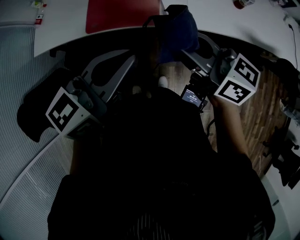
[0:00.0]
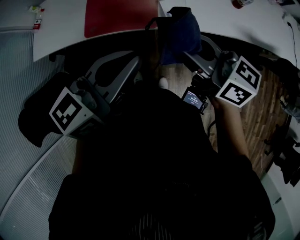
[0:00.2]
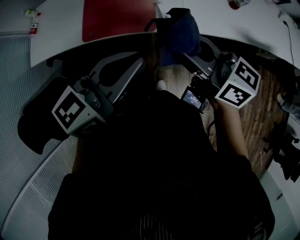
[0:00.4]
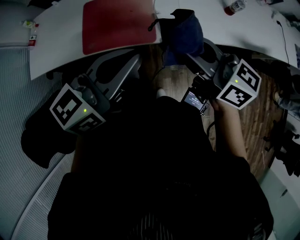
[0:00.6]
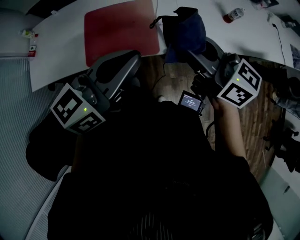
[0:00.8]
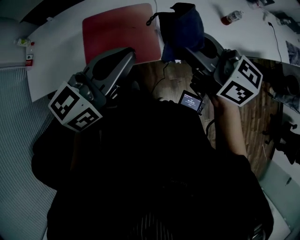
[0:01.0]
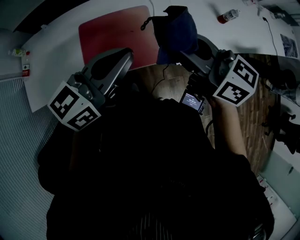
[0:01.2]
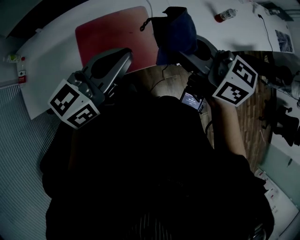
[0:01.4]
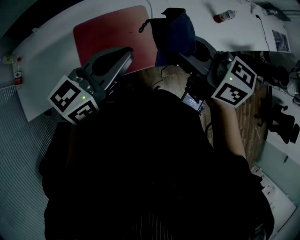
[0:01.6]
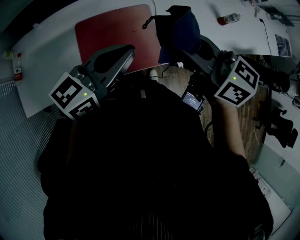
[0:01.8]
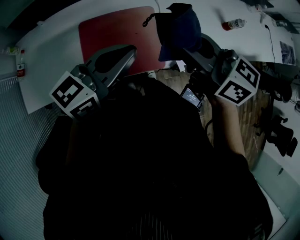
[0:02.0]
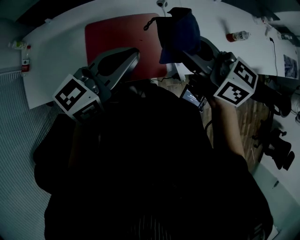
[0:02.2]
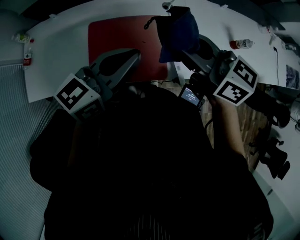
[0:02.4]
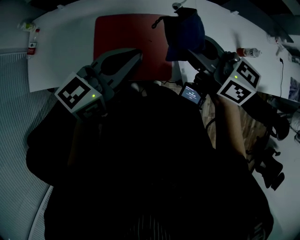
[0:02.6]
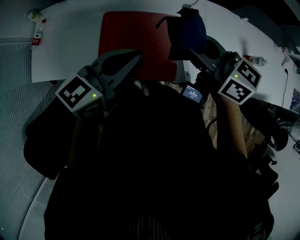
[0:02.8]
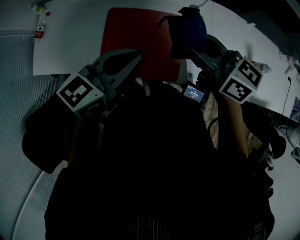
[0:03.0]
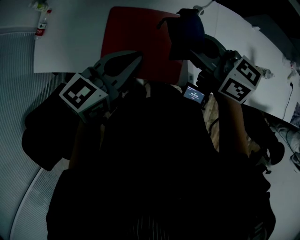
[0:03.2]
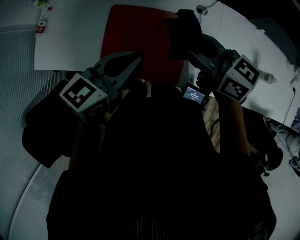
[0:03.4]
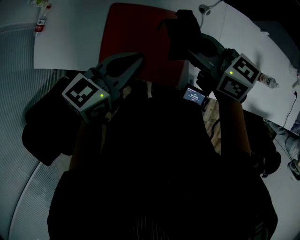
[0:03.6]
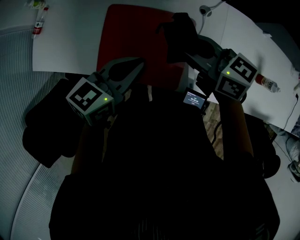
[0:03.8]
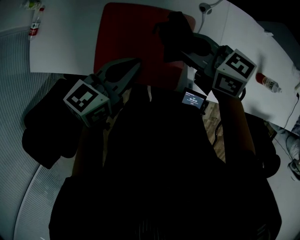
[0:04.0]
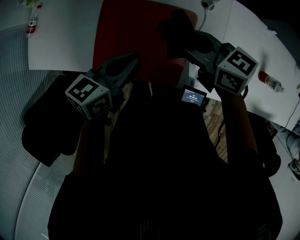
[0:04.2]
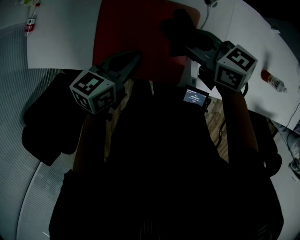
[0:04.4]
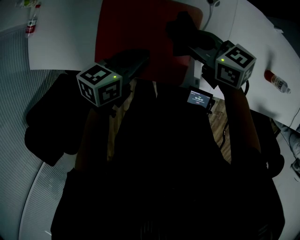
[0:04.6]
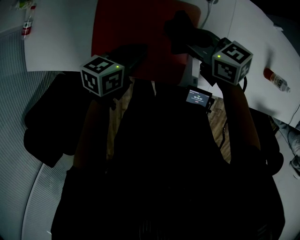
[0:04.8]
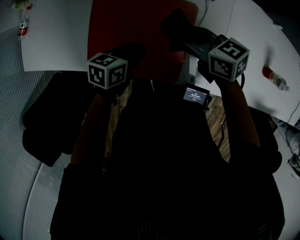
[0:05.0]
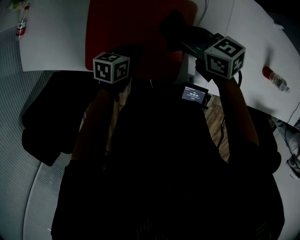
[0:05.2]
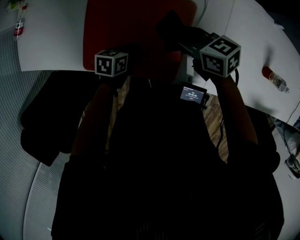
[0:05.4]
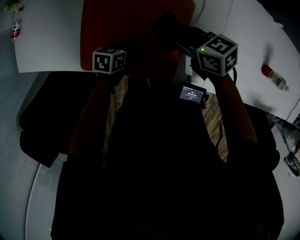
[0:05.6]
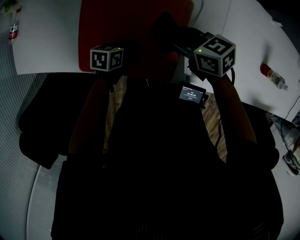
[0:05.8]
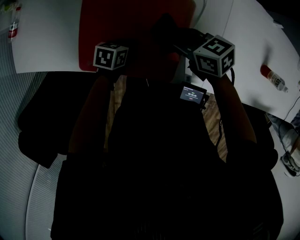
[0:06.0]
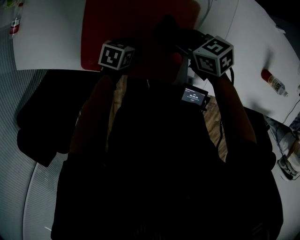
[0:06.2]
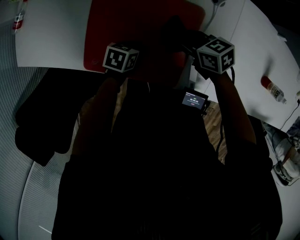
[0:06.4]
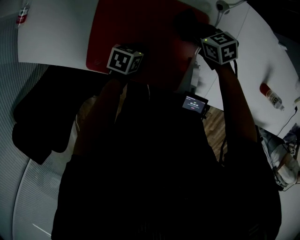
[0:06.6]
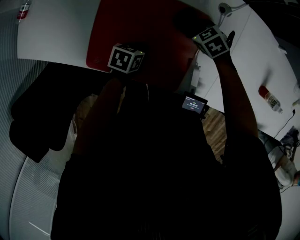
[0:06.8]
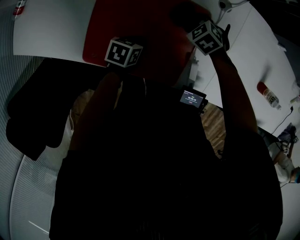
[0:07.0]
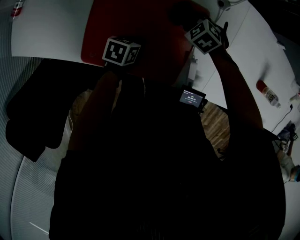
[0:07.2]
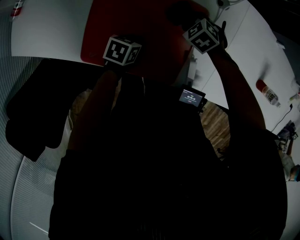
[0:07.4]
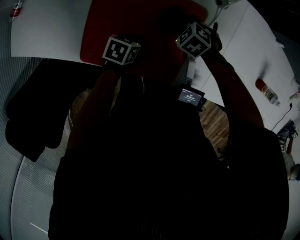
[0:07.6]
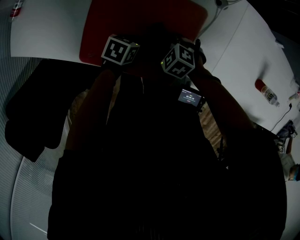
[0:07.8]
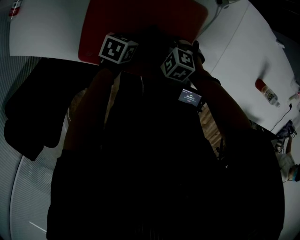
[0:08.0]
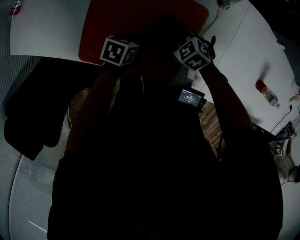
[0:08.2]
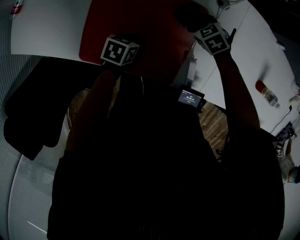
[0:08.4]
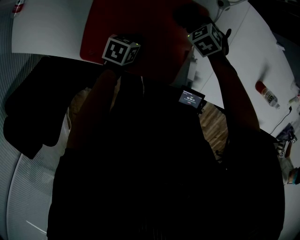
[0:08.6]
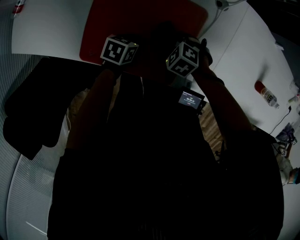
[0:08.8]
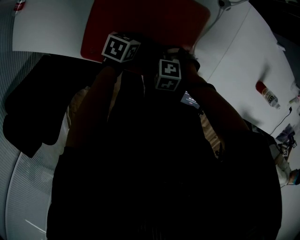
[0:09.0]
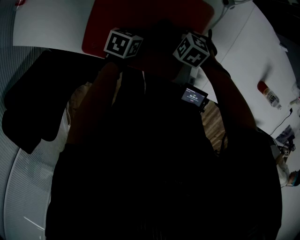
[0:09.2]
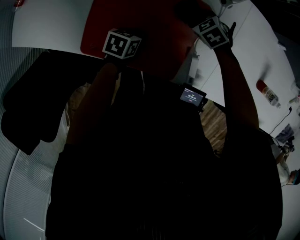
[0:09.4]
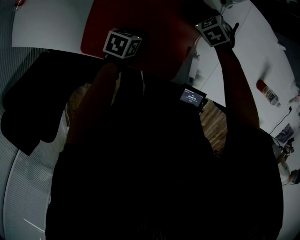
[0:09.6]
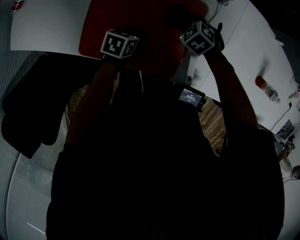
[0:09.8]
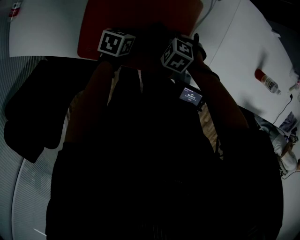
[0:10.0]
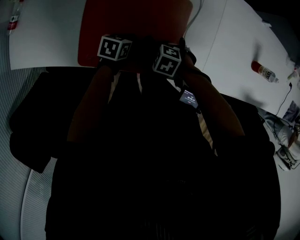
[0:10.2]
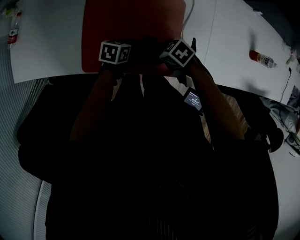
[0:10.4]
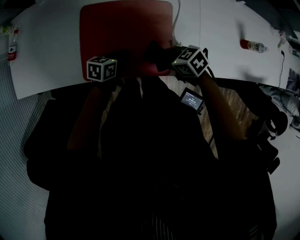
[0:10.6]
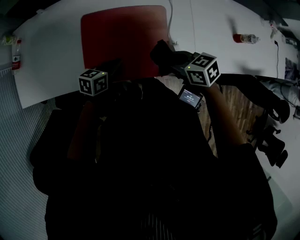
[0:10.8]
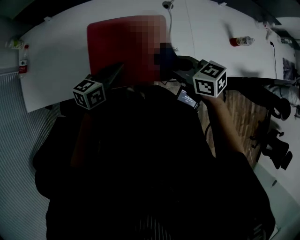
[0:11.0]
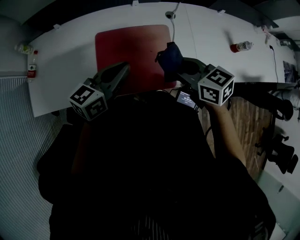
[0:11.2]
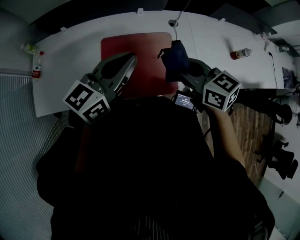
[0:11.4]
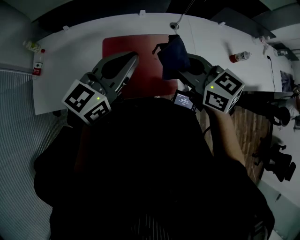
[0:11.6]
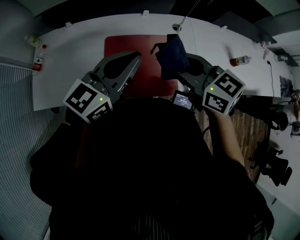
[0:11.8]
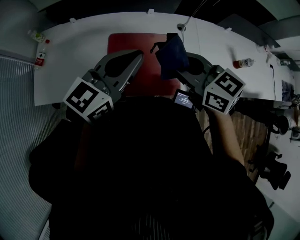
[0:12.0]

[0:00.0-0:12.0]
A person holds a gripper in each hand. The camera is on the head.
0:00.0 to 0:01.6: The right gripper shifts about 20 cm to the left and forward. The left gripper is displaced forward and to the left by roughly 25 cm.
0:01.6 to 0:03.0: The left gripper is displaced forward by approximately 5 cm, and swivels some 20 degrees. Meanwhile the right gripper shifts some 10 cm forward, and rotates some 20 degrees.
0:03.0 to 0:04.4: The two grippers go approximately 15 cm downward. The left gripper changes its angle by about 20 degrees.
0:04.4 to 0:06.0: The right gripper moves downward, about 10 cm. The left gripper shifts some 25 cm downward, and turns by roughly 30 degrees.
0:06.0 to 0:07.6: The right gripper heads downward, covering approximately 10 cm, and tips its fingers downward by some 40 degrees.
0:07.6 to 0:09.0: The right gripper changes place by about 20 cm, and swivels roughly 20 degrees.
0:09.0 to 0:10.4: The right gripper rolls clockwise, seen from behind, by about 50 degrees.
0:10.4 to 0:12.0: The two grippers go some 40 cm upward. The left gripper angles its fingers upward, by about 50 degrees. Meanwhile the right gripper angles its fingers upward, by approximately 40 degrees.

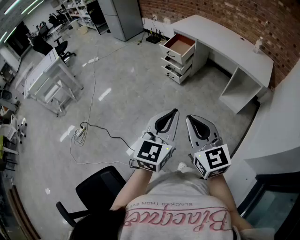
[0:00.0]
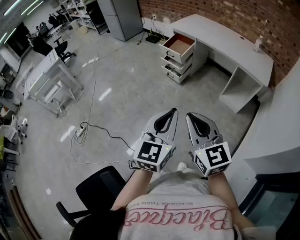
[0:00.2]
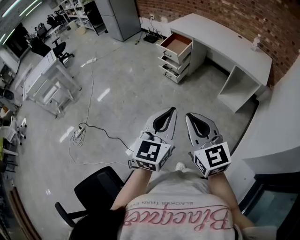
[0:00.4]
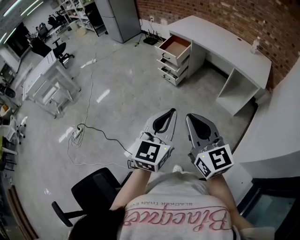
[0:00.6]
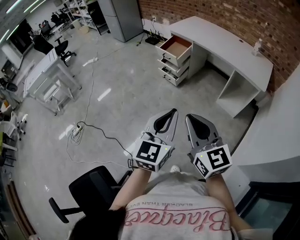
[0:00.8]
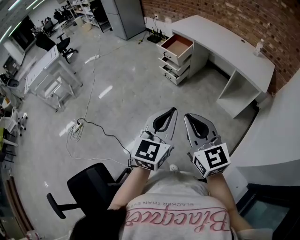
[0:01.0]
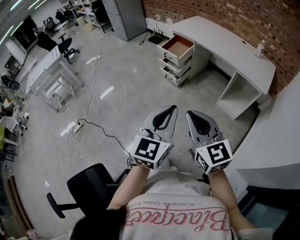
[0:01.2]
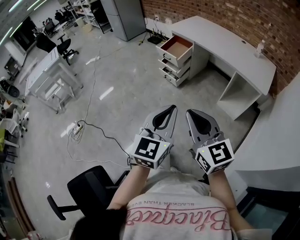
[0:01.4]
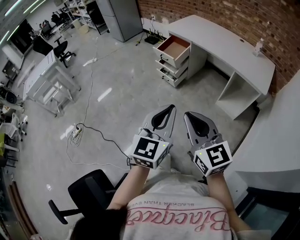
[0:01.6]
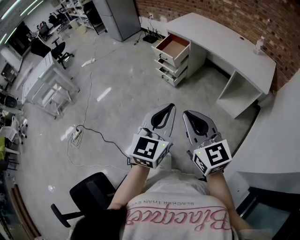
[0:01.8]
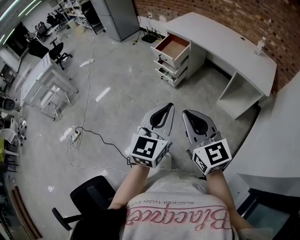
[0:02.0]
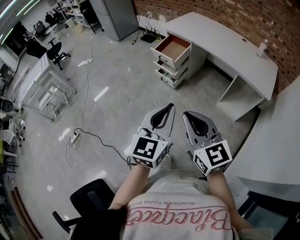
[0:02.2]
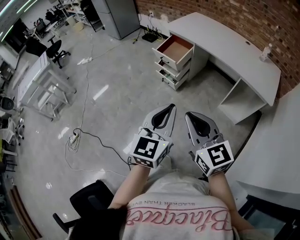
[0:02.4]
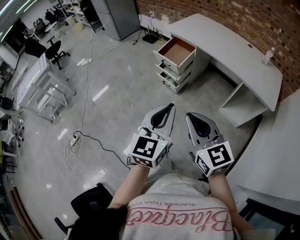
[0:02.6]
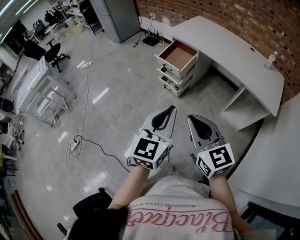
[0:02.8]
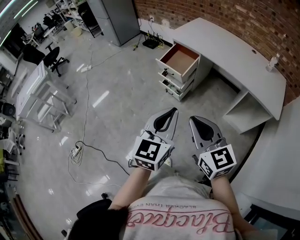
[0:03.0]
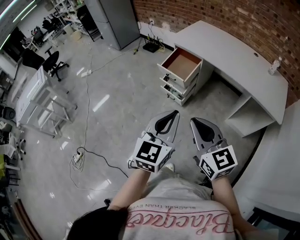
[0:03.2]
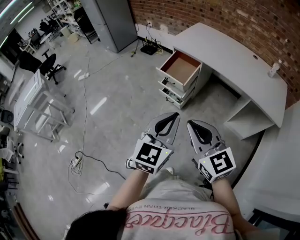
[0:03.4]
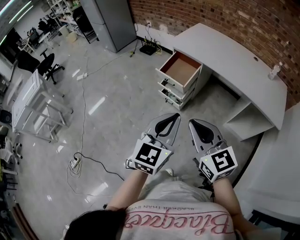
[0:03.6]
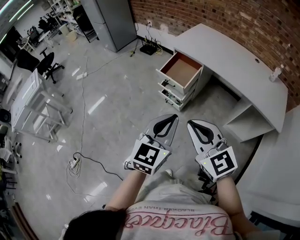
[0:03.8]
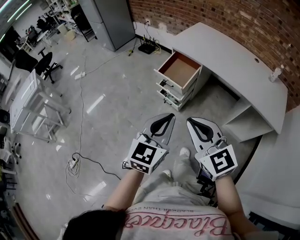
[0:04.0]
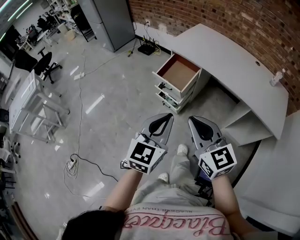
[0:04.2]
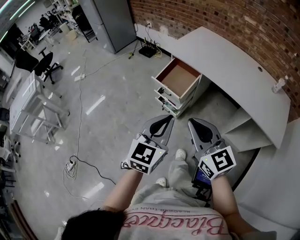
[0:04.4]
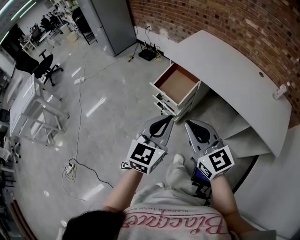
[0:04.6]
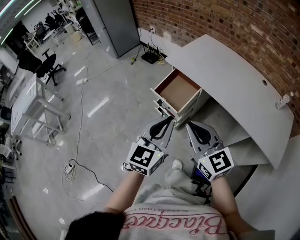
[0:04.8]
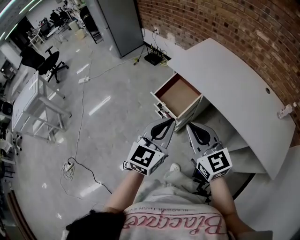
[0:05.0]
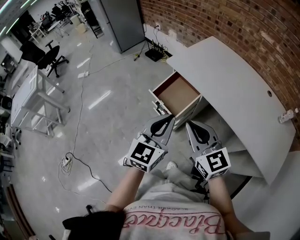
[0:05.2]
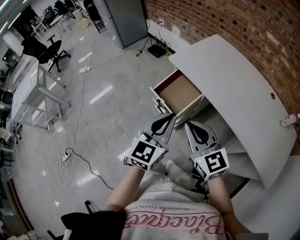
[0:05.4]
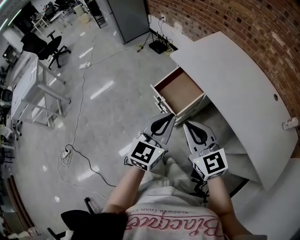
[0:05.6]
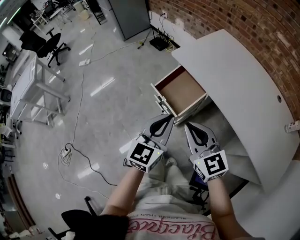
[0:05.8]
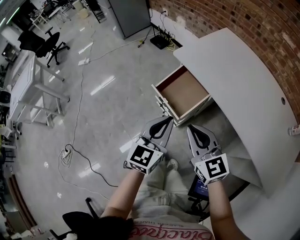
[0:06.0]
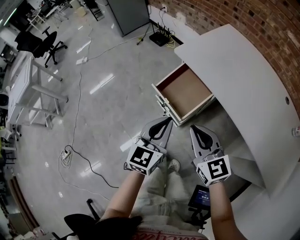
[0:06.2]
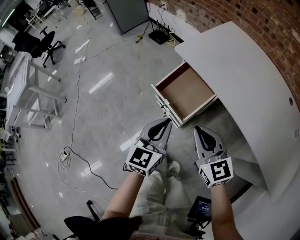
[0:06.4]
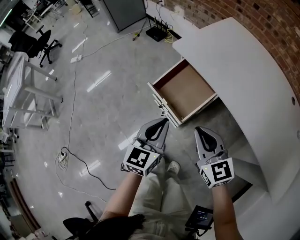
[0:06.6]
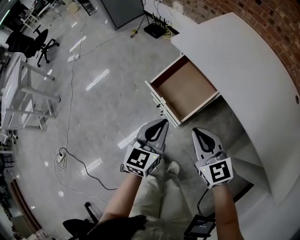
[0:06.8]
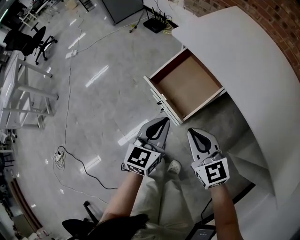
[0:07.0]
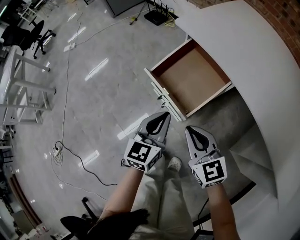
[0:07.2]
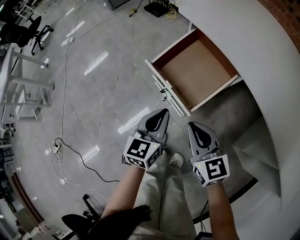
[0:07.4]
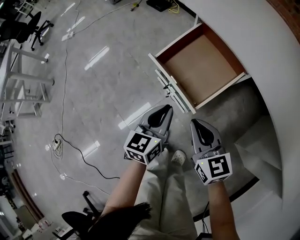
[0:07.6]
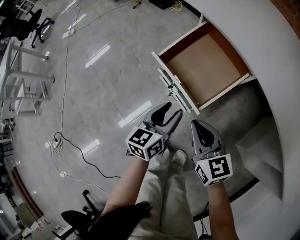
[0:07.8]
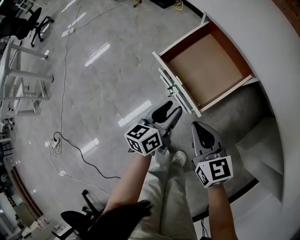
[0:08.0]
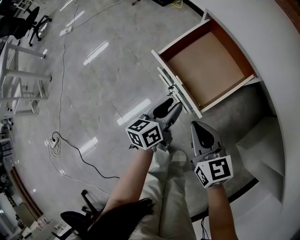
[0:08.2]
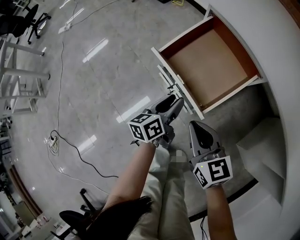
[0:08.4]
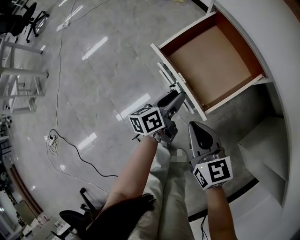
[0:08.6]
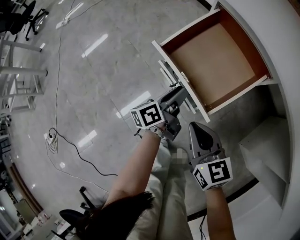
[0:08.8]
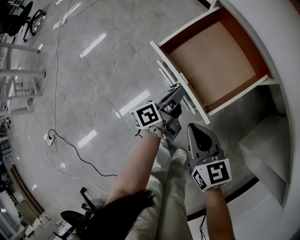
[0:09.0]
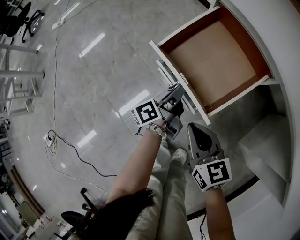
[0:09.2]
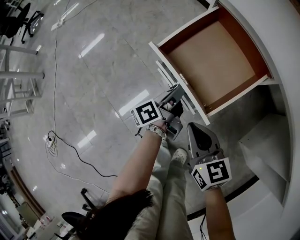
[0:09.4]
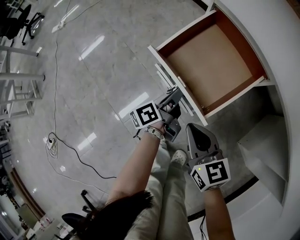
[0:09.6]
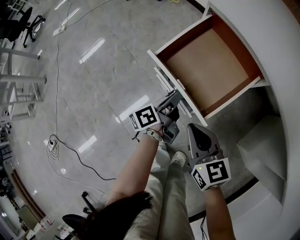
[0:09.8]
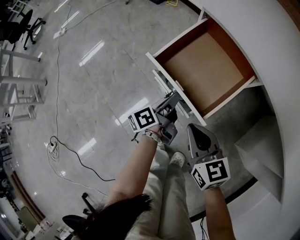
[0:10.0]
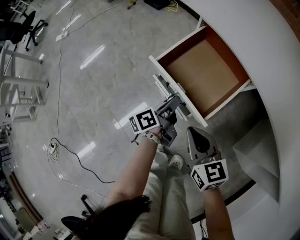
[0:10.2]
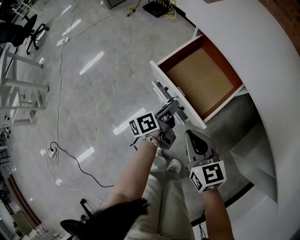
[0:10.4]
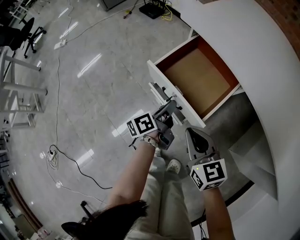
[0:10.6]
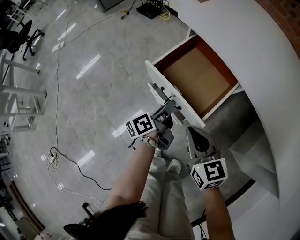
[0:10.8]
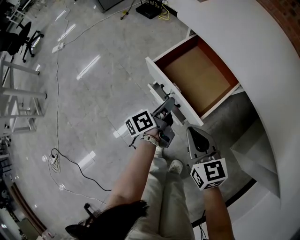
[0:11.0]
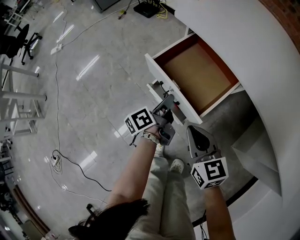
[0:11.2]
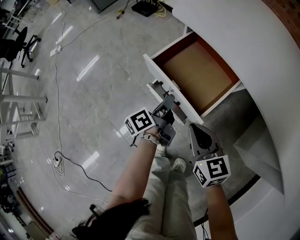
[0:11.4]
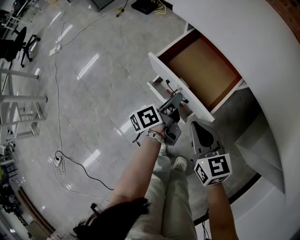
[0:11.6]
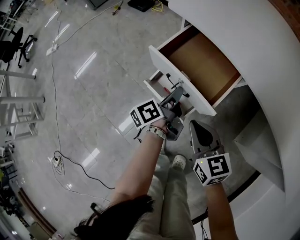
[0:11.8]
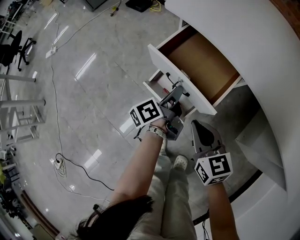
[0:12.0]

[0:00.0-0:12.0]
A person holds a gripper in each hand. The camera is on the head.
0:00.0 to 0:01.6: Both grippers travel together to the right and forward, approximately 15 cm.
0:01.6 to 0:03.0: The two grippers go roughly 25 cm forward.
0:03.0 to 0:04.4: Both grippers travel together forward, approximately 20 cm.
0:04.4 to 0:06.0: The two grippers go roughly 25 cm forward.
0:06.0 to 0:07.6: The grippers both shift downward by approximately 30 cm. The left gripper swivels about 20 degrees.
0:07.6 to 0:09.0: The left gripper travels downward and forward by roughly 15 cm, twists approximately 50 degrees counterclockwise, seen from behind, and opens, then closes again, while the right gripper shifts about 10 cm downward.
0:09.0 to 0:10.4: Both grippers move upward, about 5 cm.
0:10.4 to 0:12.0: The right gripper moves about 5 cm. The left gripper goes some 5 cm forward.
